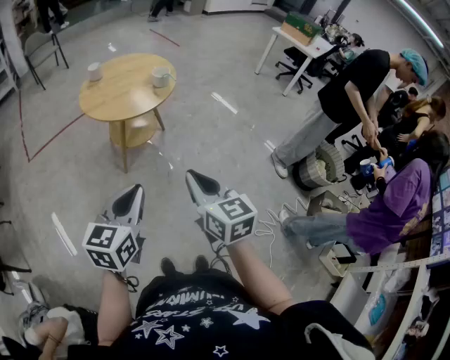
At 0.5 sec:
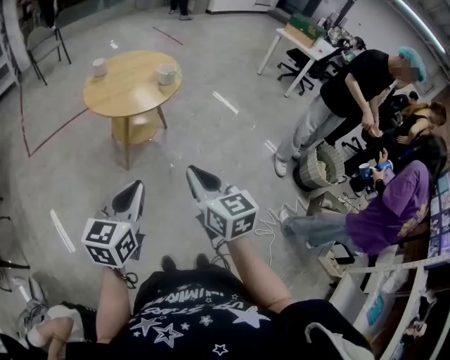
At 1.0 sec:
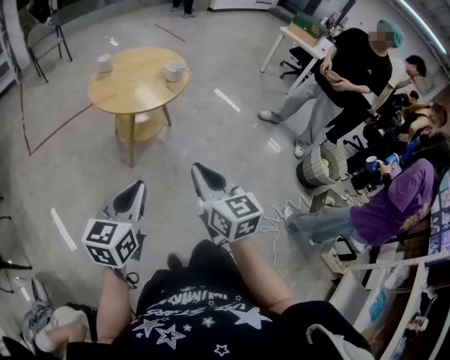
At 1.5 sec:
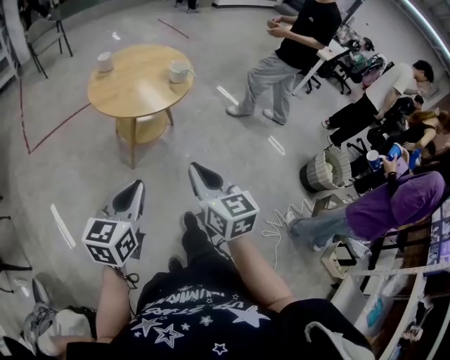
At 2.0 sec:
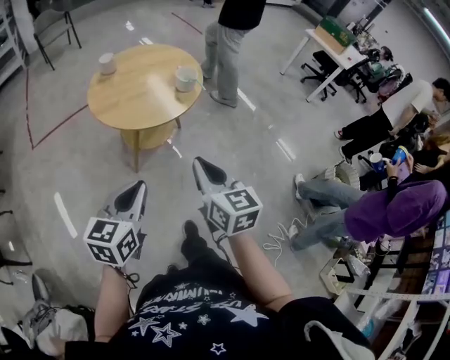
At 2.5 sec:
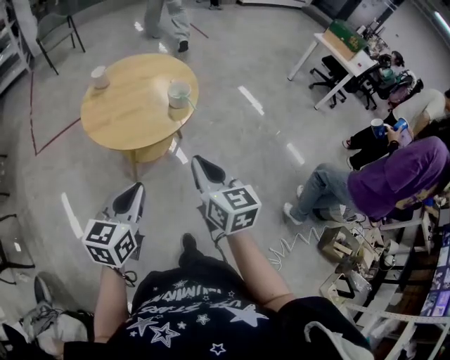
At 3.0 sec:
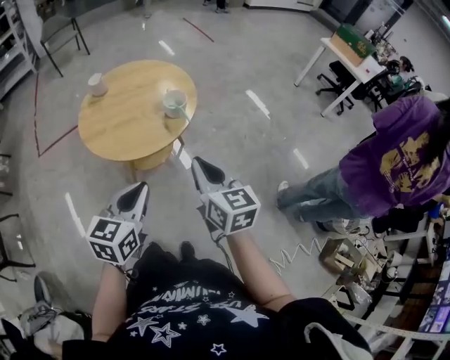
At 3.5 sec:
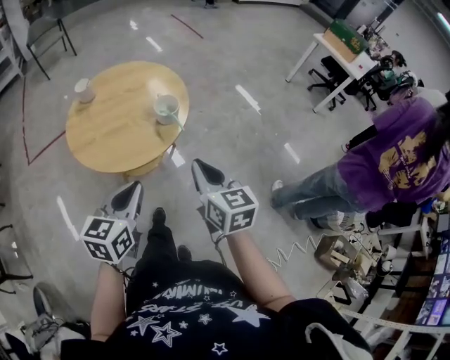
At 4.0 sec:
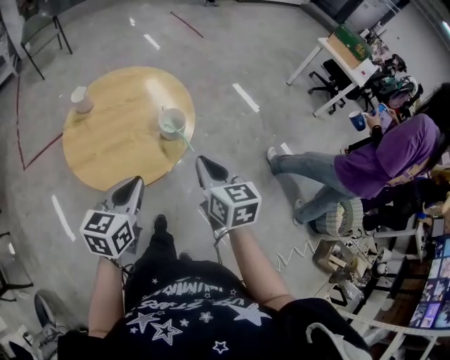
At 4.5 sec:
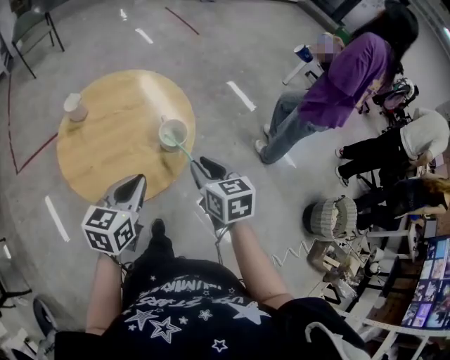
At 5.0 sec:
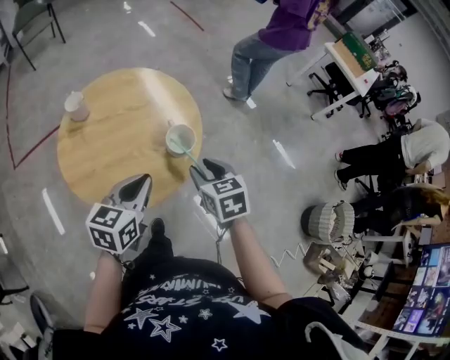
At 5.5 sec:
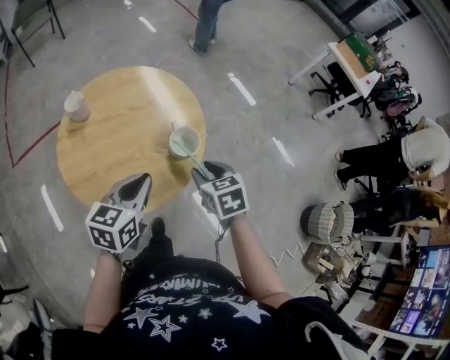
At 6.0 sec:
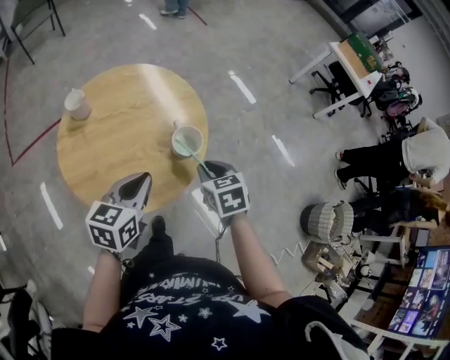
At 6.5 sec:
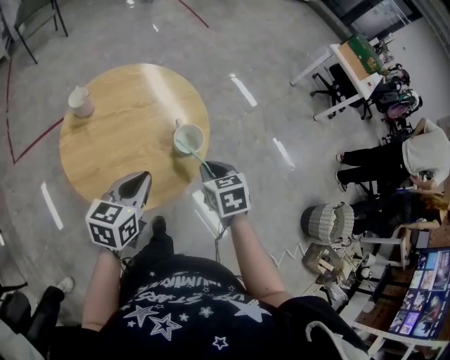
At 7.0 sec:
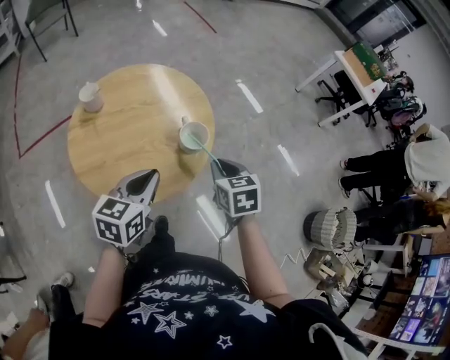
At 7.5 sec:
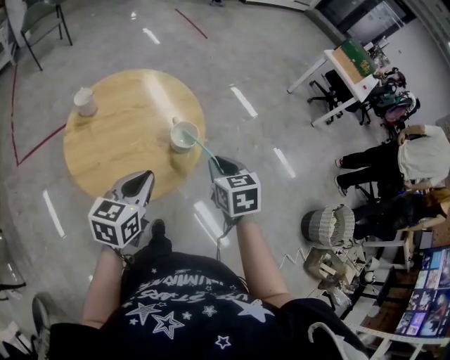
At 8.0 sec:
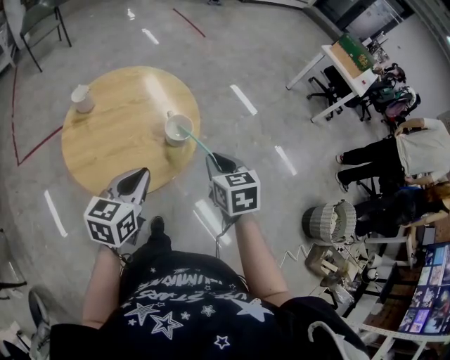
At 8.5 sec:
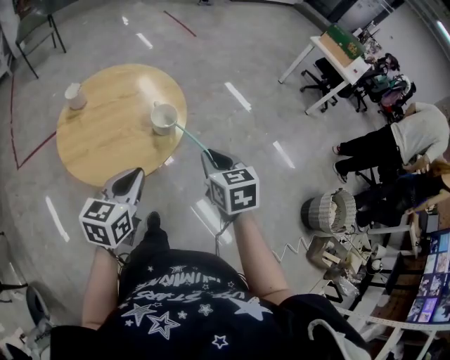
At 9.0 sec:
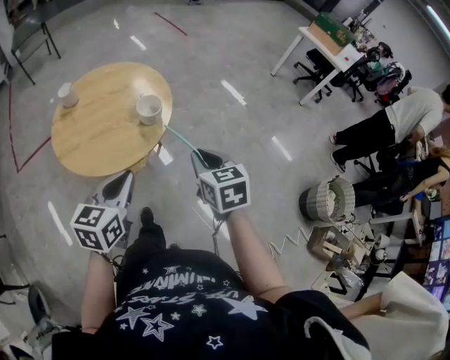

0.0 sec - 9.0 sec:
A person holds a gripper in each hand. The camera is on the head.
0.0 sec - 2.0 sec: Both grippers move forward, about 20 cm.
2.0 sec - 4.5 sec: Both grippers move forward, about 40 cm. The right gripper opens its fingers.
7.0 sec - 9.0 sec: The left gripper is displaced backward and to the right by approximately 20 cm. Meanwhile the right gripper goes about 20 cm backward, to the right and upward.

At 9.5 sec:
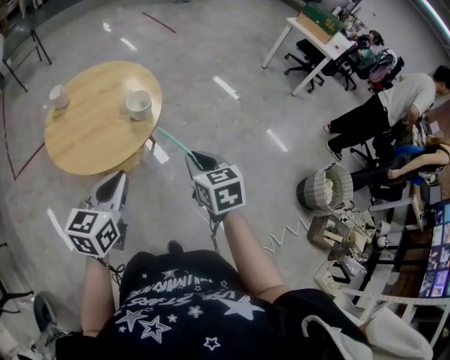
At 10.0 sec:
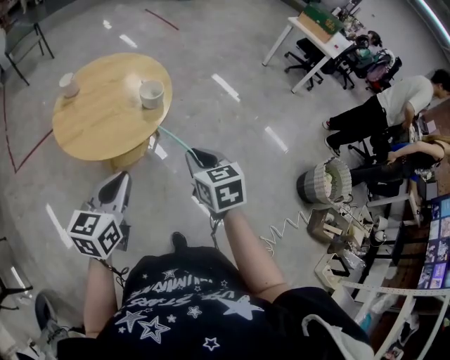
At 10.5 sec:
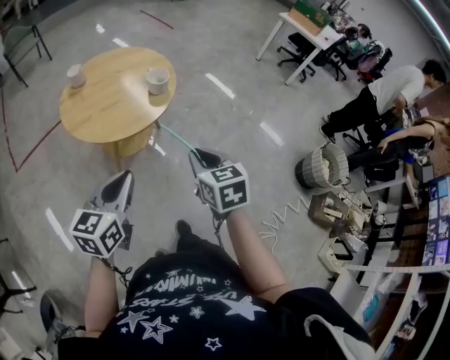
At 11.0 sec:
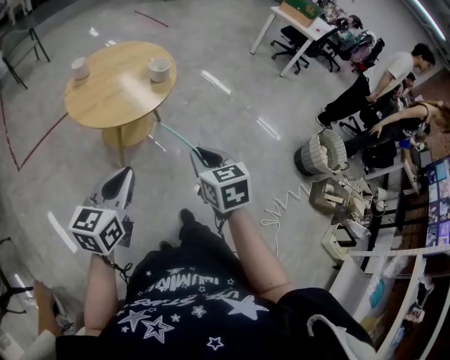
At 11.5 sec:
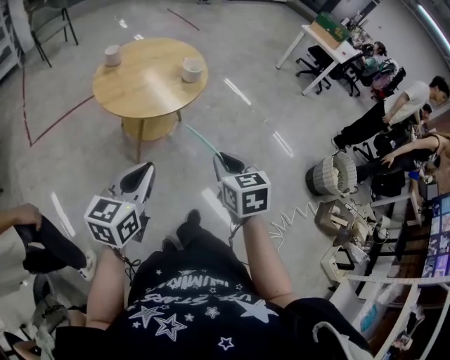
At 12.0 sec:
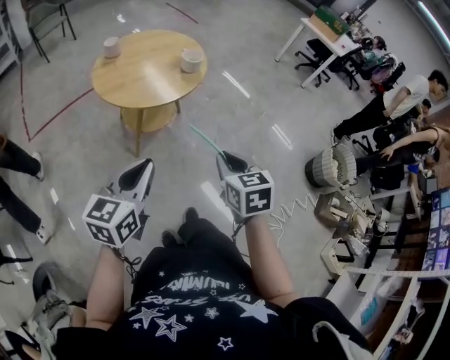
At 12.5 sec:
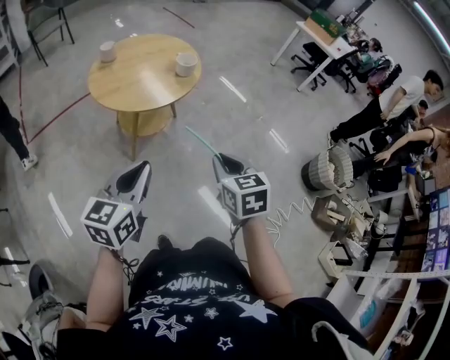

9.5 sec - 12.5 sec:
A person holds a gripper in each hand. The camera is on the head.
9.5 sec - 11.0 sec: The grippers both shift backward and to the left by roughly 25 cm.
11.0 sec - 12.5 sec: The grippers stay close to where they were, moving slightly.

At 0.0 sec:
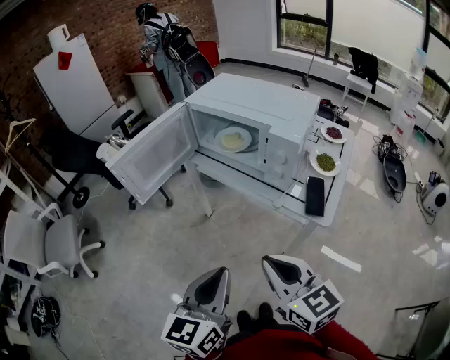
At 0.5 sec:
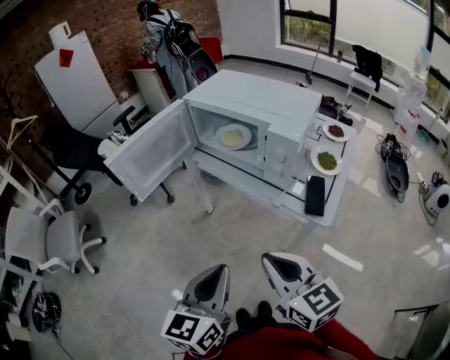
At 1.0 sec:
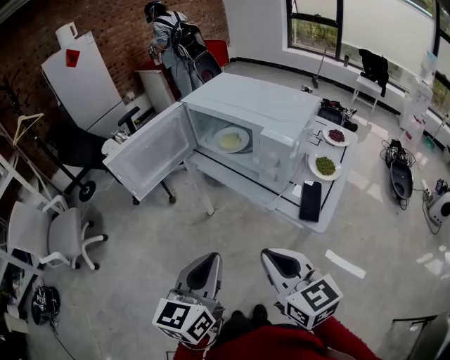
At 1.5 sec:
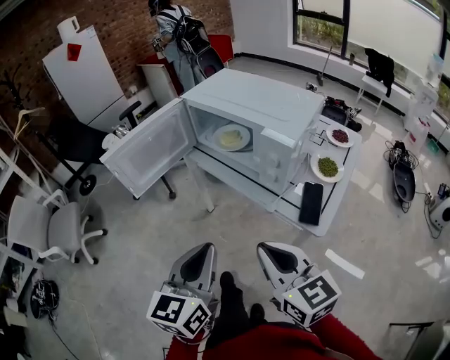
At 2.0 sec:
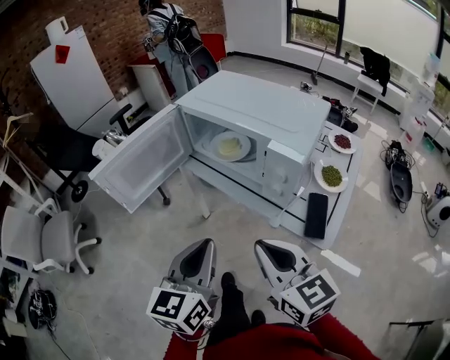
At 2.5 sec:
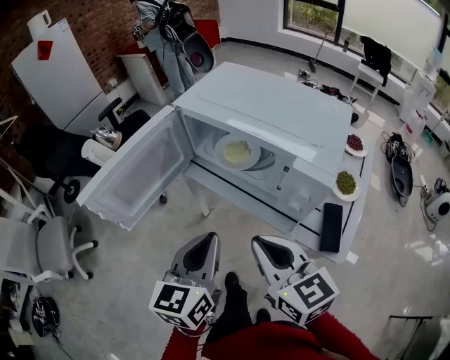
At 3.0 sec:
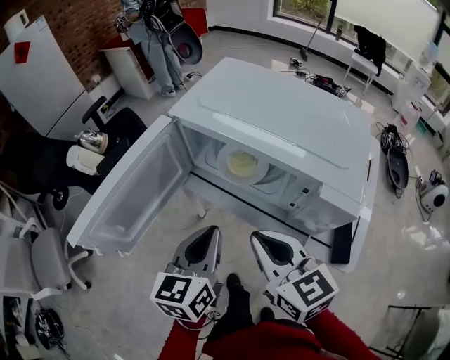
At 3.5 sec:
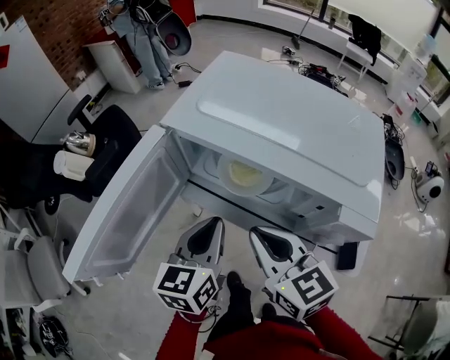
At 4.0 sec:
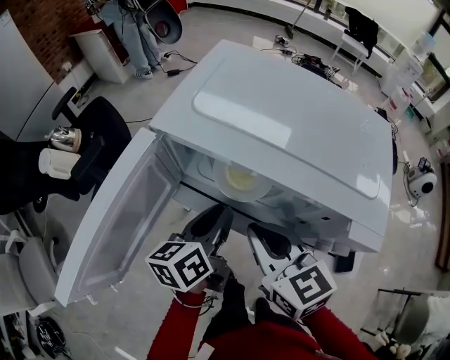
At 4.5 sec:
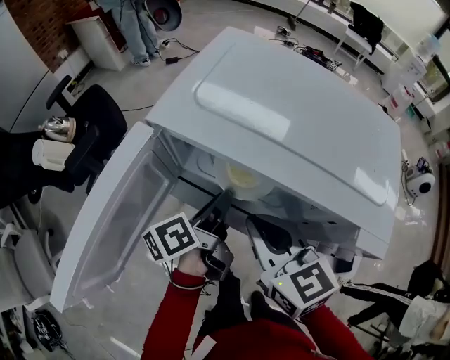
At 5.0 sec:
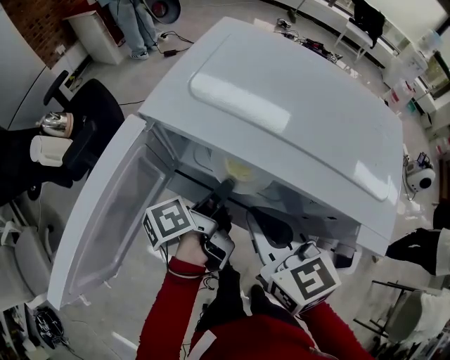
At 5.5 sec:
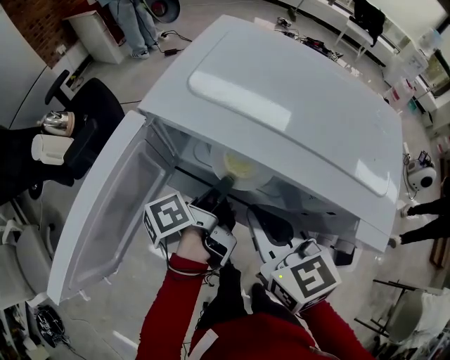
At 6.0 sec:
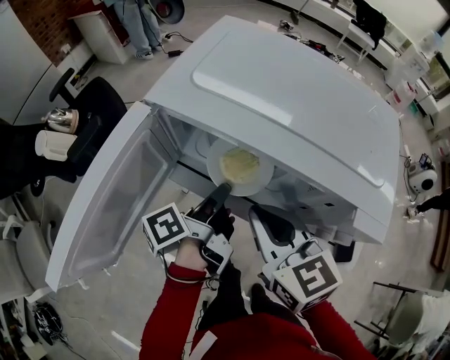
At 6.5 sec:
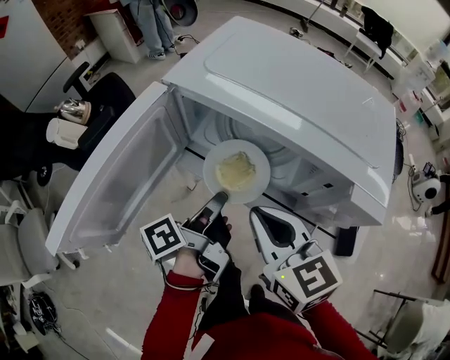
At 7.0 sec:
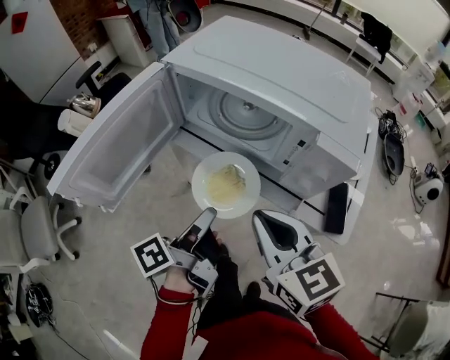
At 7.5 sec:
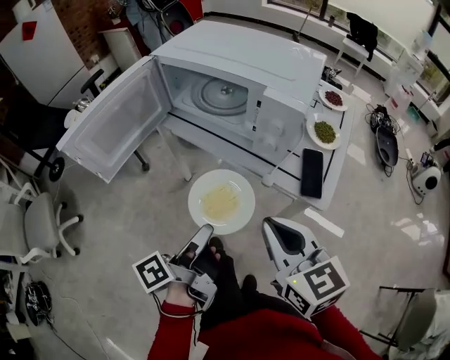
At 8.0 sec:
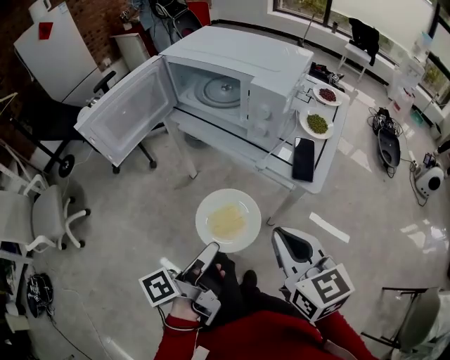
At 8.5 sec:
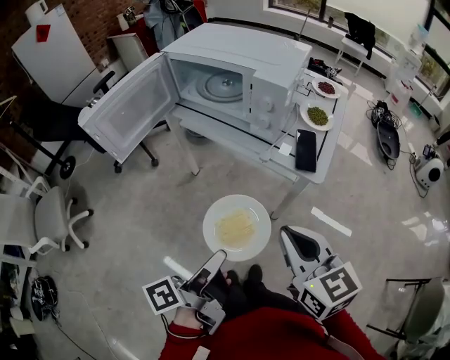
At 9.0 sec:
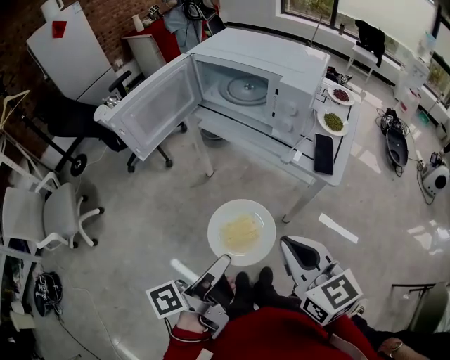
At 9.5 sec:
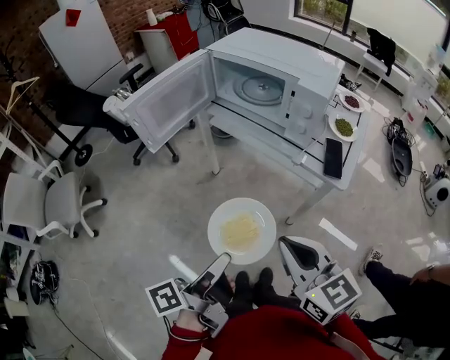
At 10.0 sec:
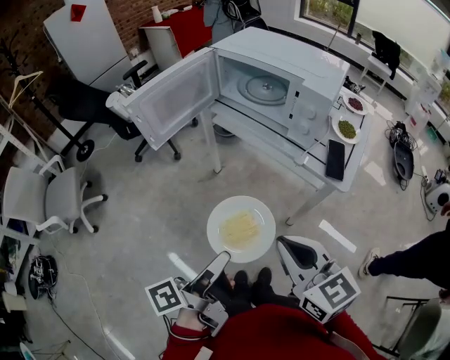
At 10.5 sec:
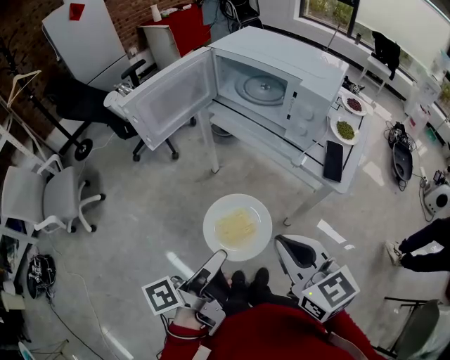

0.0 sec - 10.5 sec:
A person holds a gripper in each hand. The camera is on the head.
0.0 sec - 2.0 sec: Both grippers travel together forward, about 10 cm.
2.0 sec - 4.0 sec: The two grippers go about 25 cm forward. The left gripper rotates about 40 degrees.
4.0 sec - 6.5 sec: The left gripper twists some 50 degrees counterclockwise, seen from behind.
6.5 sec - 8.5 sec: The left gripper shifts roughly 35 cm backward. Meanwhile the right gripper shifts approximately 35 cm backward and to the right.
8.5 sec - 10.5 sec: The grippers both shift to the left by about 10 cm.

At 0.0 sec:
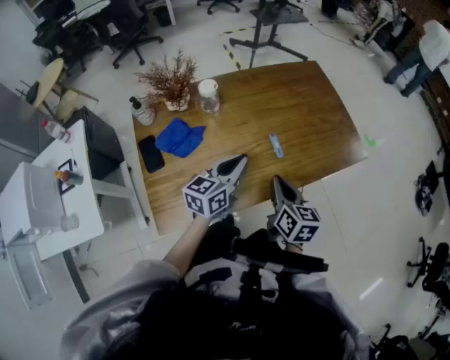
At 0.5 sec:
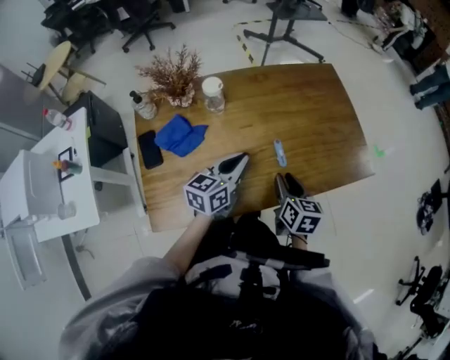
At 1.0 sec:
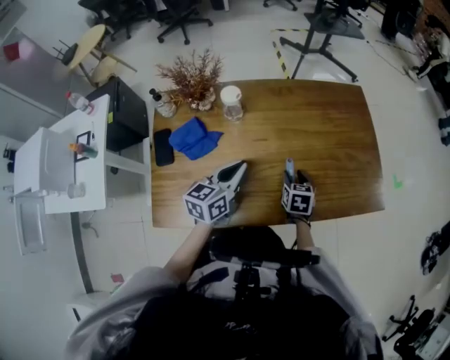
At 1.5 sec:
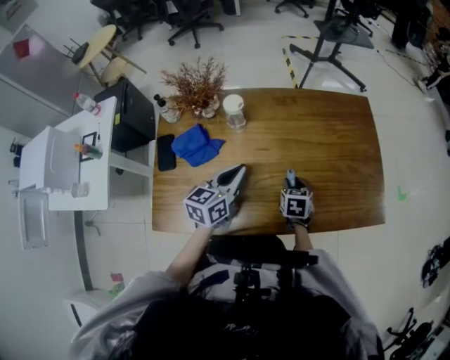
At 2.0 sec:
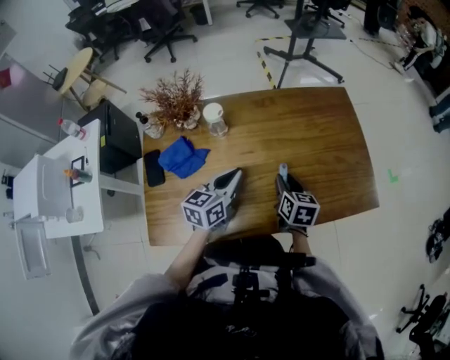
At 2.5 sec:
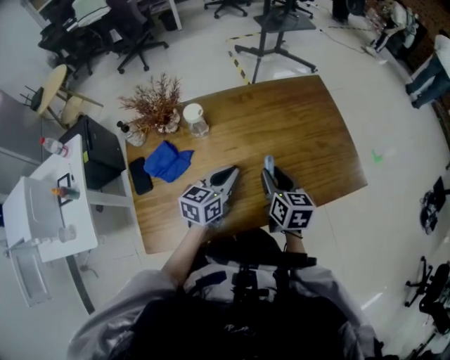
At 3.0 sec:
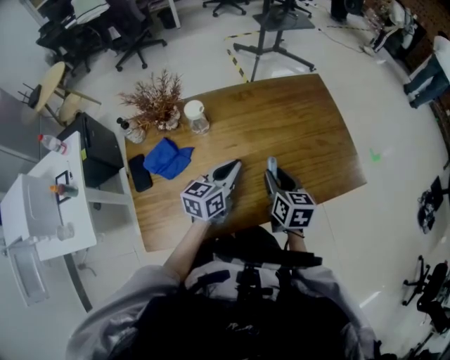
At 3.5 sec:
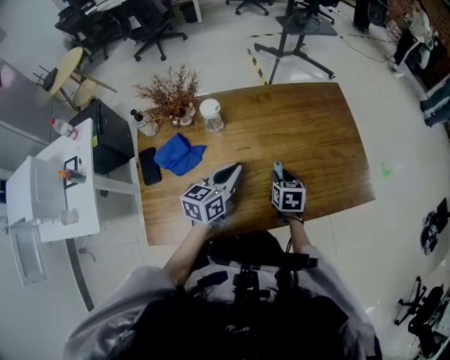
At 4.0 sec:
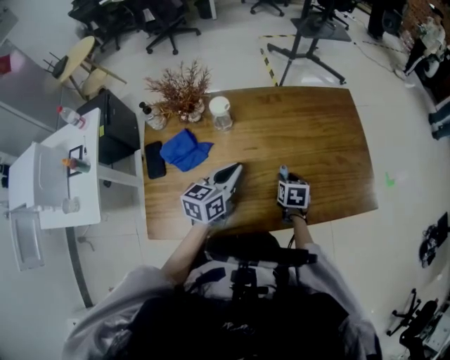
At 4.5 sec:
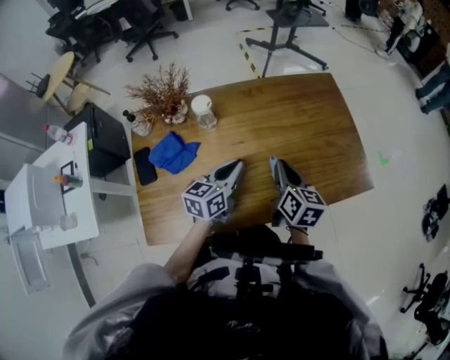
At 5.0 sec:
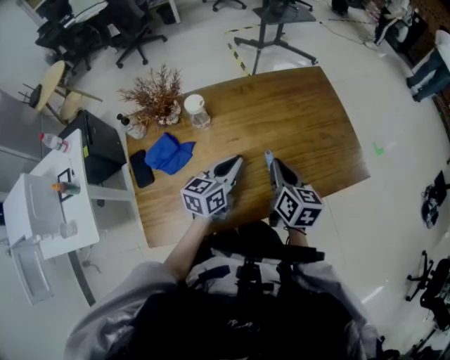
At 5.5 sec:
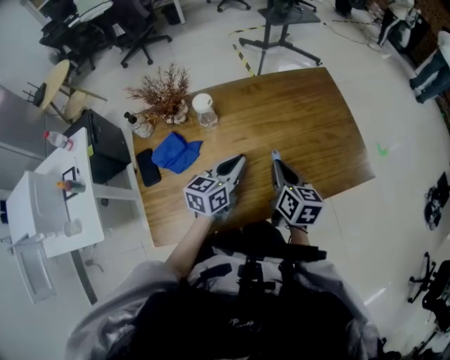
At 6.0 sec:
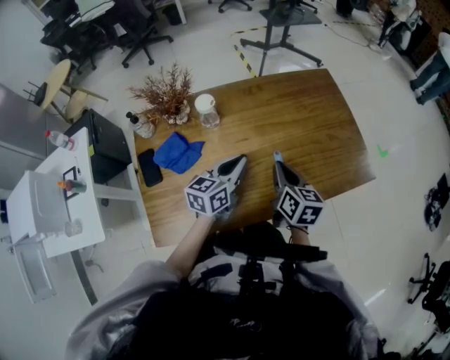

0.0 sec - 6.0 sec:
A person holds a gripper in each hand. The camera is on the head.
0.0 sec - 2.0 sec: The left gripper goes about 10 cm forward. The right gripper shifts some 20 cm forward and downward, and opens.
2.0 sec - 4.0 sec: The right gripper moves downward and to the right, roughly 10 cm, and tilts its fingers about 30 degrees downward.
4.0 sec - 6.0 sec: The right gripper travels upward by approximately 15 cm, tilts its fingers about 40 degrees upward, and closes its fingers.
